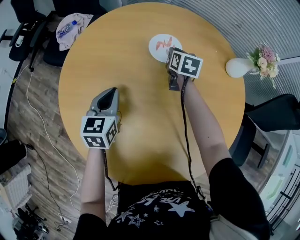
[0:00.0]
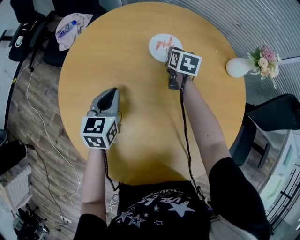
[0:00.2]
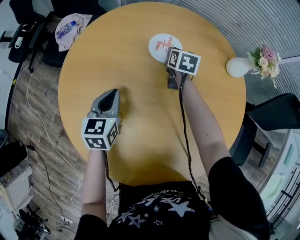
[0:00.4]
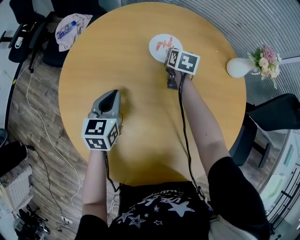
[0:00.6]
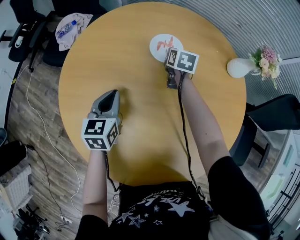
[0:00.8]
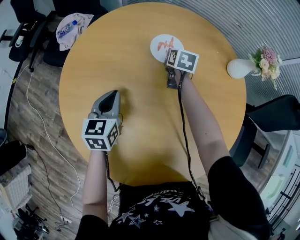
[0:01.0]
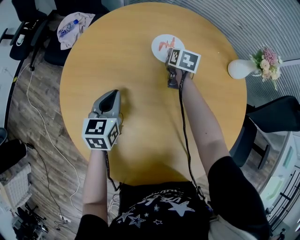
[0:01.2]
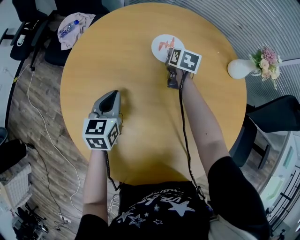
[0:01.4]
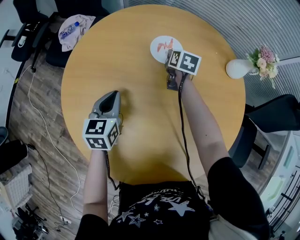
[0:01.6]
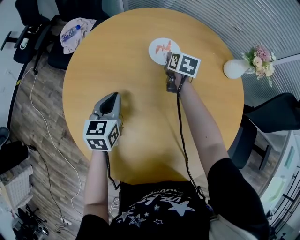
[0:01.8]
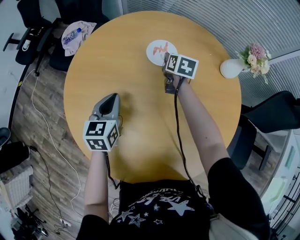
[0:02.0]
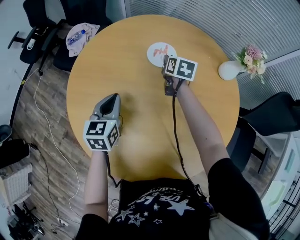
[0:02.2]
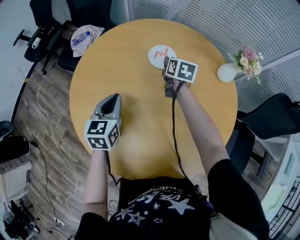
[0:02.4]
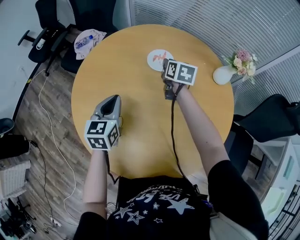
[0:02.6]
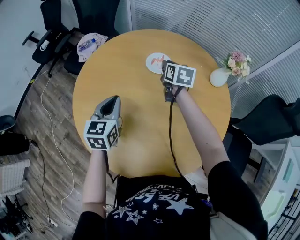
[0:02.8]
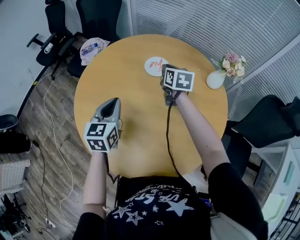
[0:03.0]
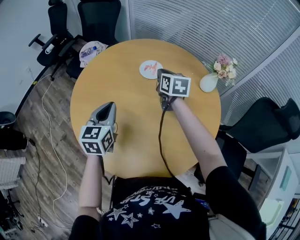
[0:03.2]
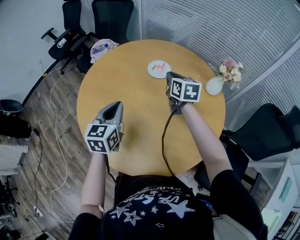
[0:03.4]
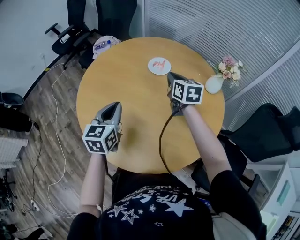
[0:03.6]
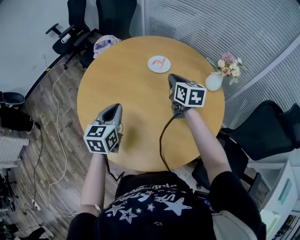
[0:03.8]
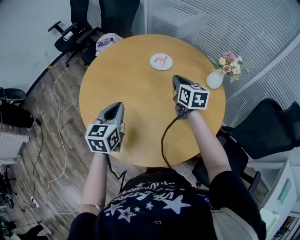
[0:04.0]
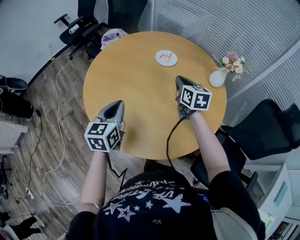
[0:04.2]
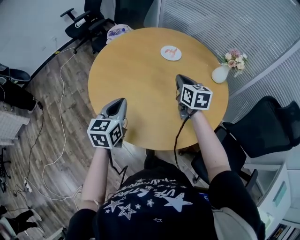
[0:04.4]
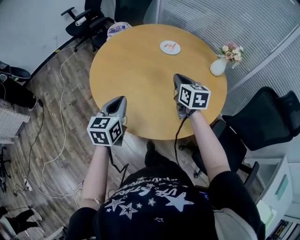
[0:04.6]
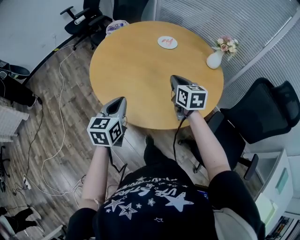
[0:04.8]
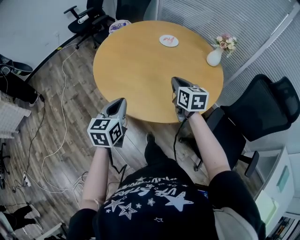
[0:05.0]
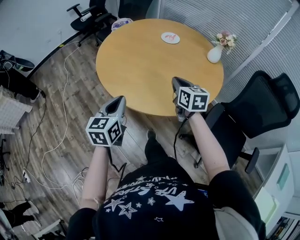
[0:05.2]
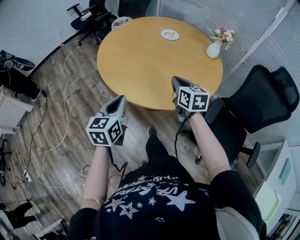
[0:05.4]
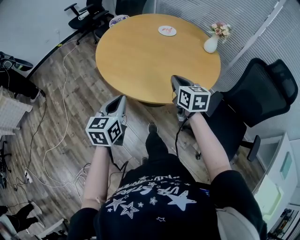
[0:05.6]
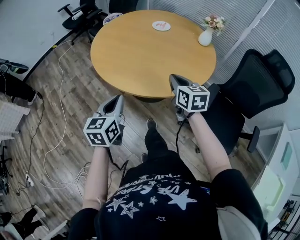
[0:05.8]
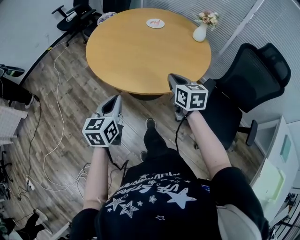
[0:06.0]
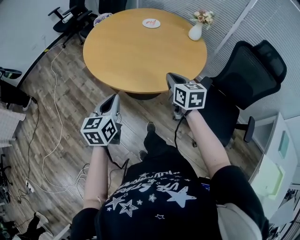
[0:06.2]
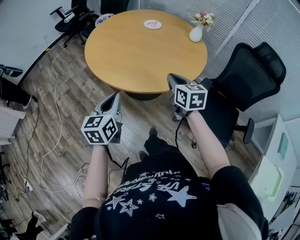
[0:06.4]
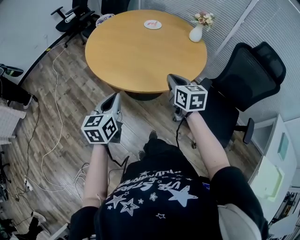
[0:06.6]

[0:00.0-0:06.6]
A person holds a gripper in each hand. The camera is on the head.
0:00.0 to 0:01.6: The grippers make only small movements.
0:01.6 to 0:03.2: The right gripper goes roughly 25 cm upward and backward, and rotates roughly 30 degrees. The left gripper is displaced upward, backward and to the right by some 20 cm.
0:03.2 to 0:05.0: Both grippers move backward, some 35 cm.
0:05.0 to 0:06.6: Both grippers travel together backward, roughly 15 cm.

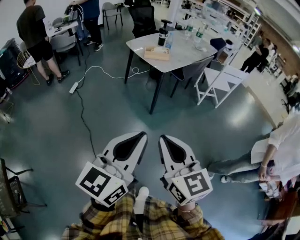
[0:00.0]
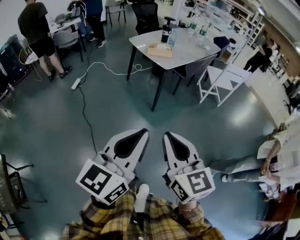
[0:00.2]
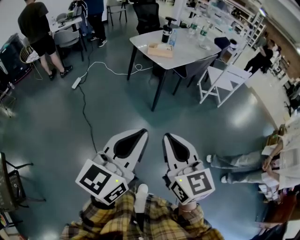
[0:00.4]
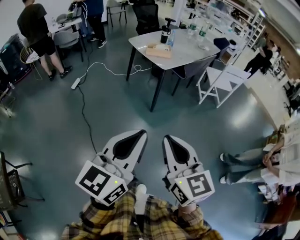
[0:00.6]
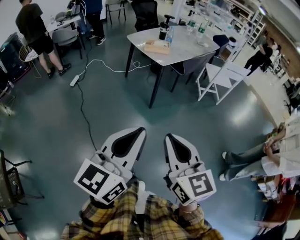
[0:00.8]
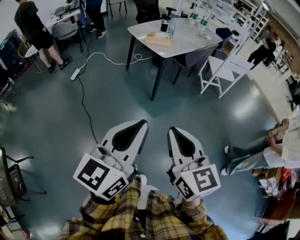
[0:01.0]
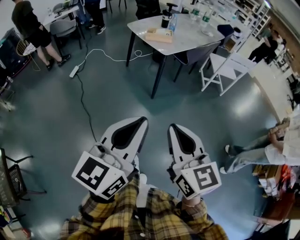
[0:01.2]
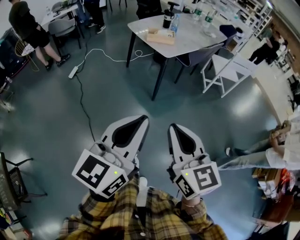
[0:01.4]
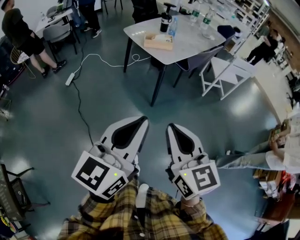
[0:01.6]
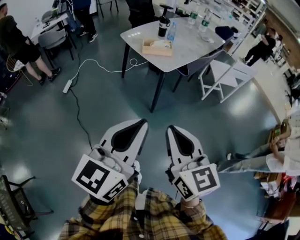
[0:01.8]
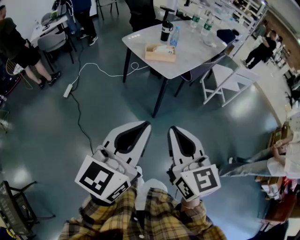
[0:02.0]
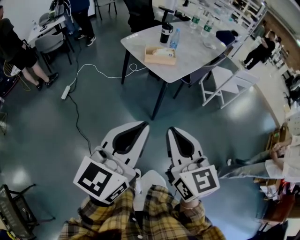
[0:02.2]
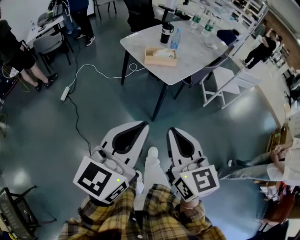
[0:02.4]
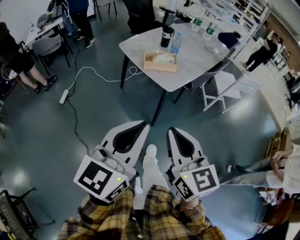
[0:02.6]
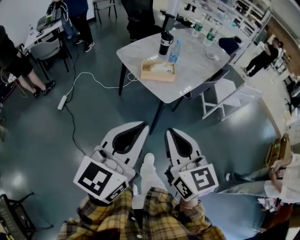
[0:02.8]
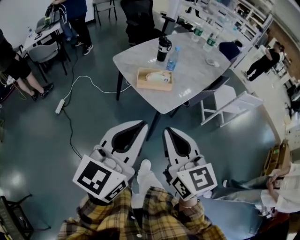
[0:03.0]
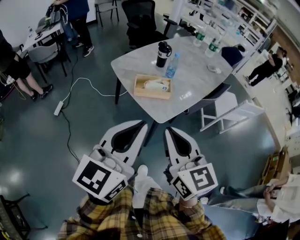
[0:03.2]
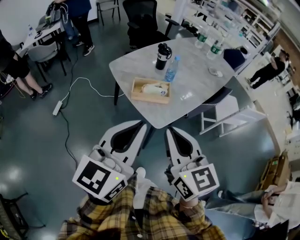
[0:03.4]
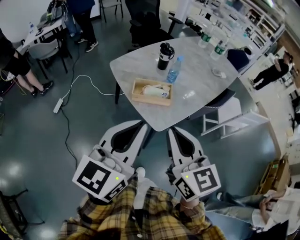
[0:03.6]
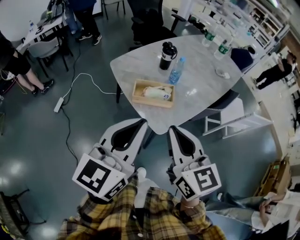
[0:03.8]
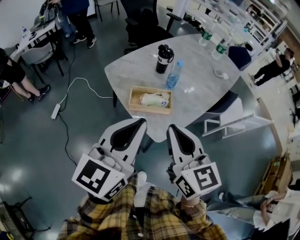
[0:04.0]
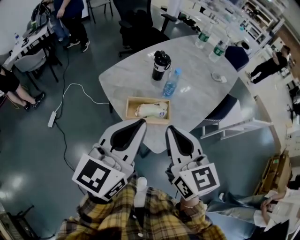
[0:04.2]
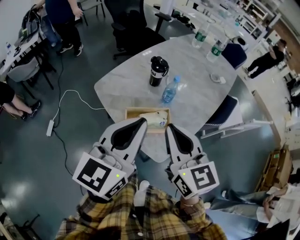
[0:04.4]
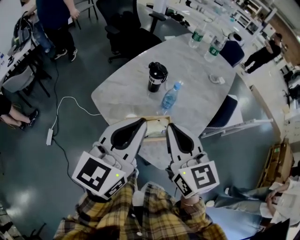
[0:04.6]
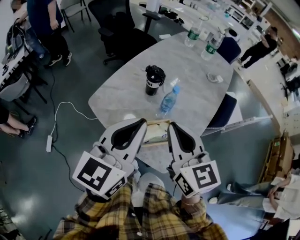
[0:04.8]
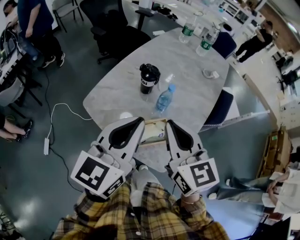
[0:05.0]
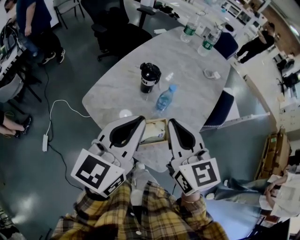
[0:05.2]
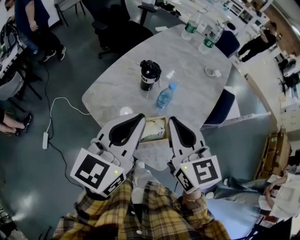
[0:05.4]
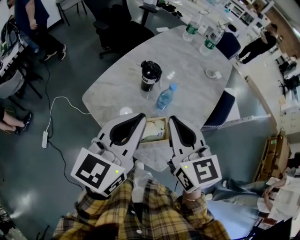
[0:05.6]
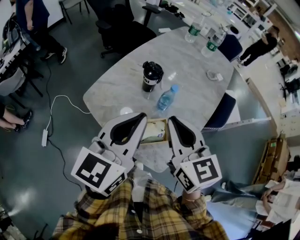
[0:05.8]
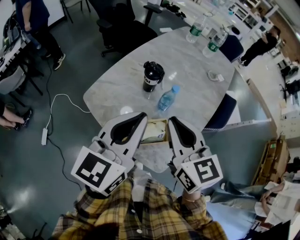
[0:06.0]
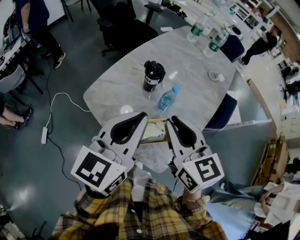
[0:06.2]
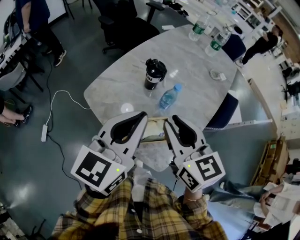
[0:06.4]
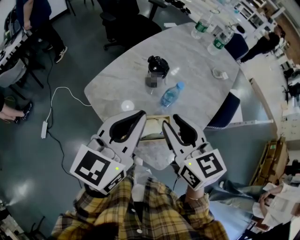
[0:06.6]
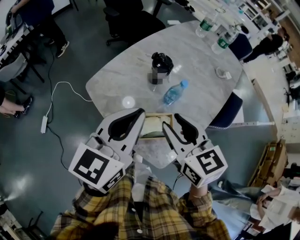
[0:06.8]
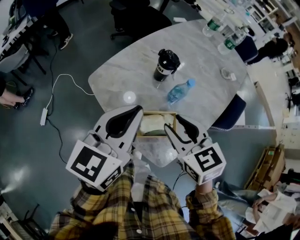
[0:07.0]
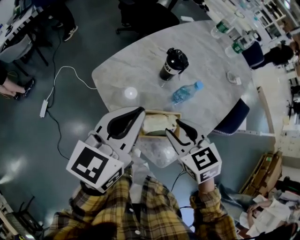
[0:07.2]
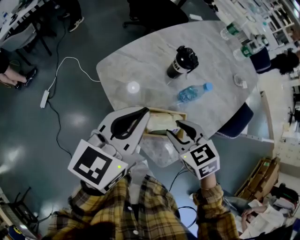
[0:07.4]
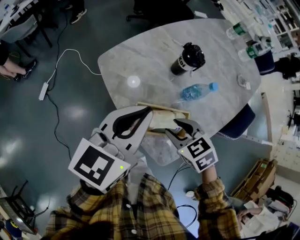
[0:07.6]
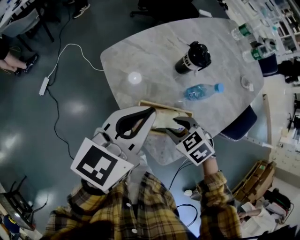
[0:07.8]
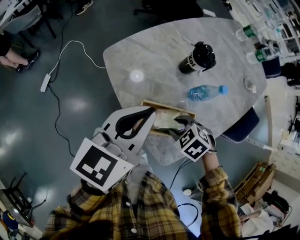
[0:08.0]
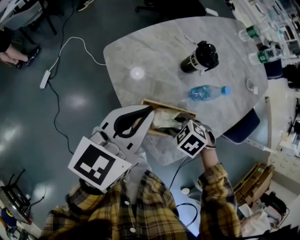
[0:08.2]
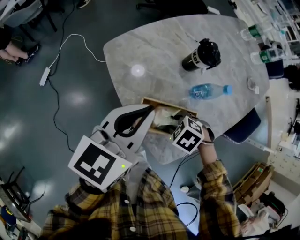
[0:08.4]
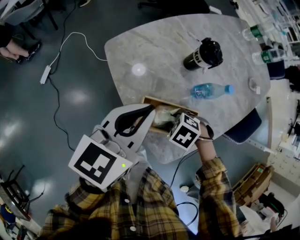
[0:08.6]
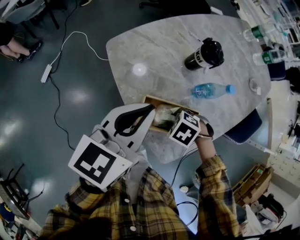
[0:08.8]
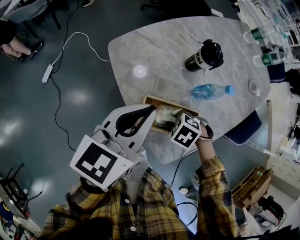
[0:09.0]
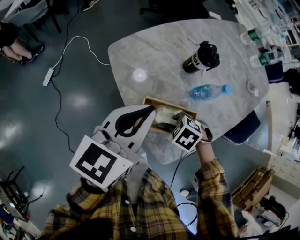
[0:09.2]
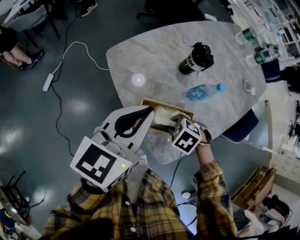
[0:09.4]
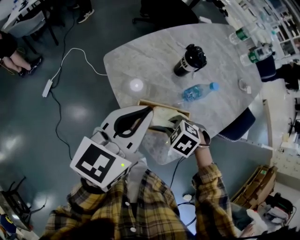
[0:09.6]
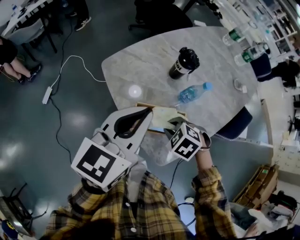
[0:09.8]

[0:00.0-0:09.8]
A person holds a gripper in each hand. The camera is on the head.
0:00.0 to 0:01.4: Both grippers travel together forward, approximately 5 cm.
0:01.4 to 0:02.8: The grippers both shift forward by approximately 35 cm.
0:02.8 to 0:04.2: The grippers both shift forward by about 35 cm.
0:04.2 to 0:05.6: Both grippers move forward, some 15 cm.
0:05.6 to 0:07.0: The right gripper moves downward, about 10 cm, changes its angle by about 30 degrees, and opens its fingers. Meanwhile the left gripper shifts by roughly 5 cm.
0:07.0 to 0:08.4: The left gripper travels downward by roughly 10 cm, while the right gripper moves downward, some 25 cm, and tilts its fingers some 50 degrees downward.
0:08.4 to 0:09.8: The two grippers go some 5 cm upward. The right gripper closes.

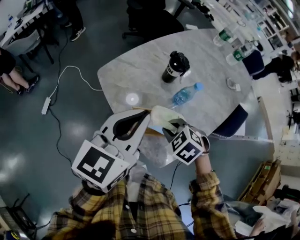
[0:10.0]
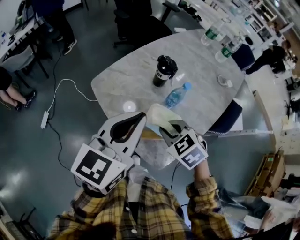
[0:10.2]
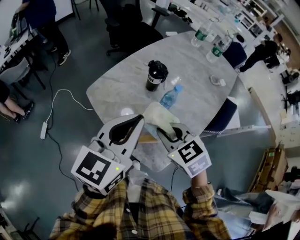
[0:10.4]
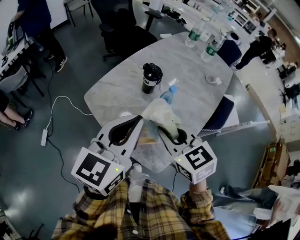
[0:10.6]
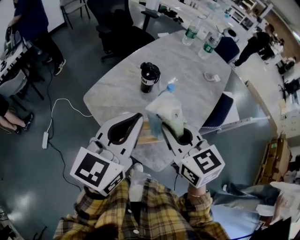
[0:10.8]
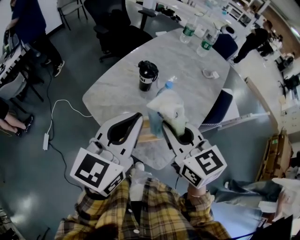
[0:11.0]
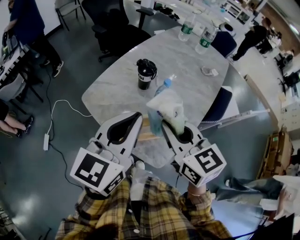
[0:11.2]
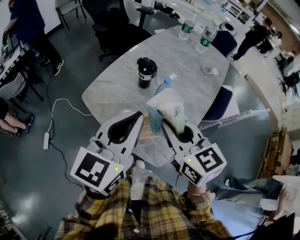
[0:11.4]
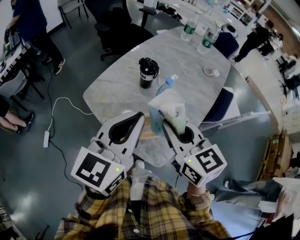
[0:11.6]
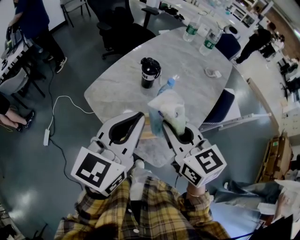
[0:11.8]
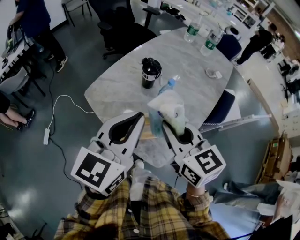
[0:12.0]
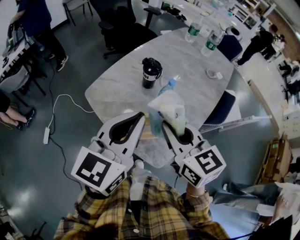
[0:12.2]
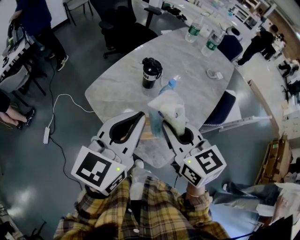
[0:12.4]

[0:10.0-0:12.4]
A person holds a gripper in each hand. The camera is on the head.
0:10.0 to 0:11.2: The left gripper moves upward and to the right, some 5 cm. Meanwhile the right gripper heads upward, covering some 20 cm, and points its fingers some 50 degrees further upward.
0:11.2 to 0:12.4: Both grippers stay put.

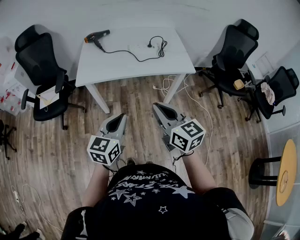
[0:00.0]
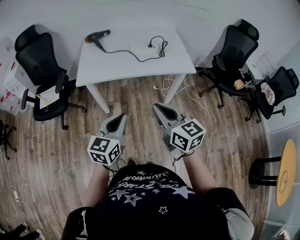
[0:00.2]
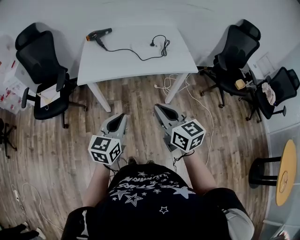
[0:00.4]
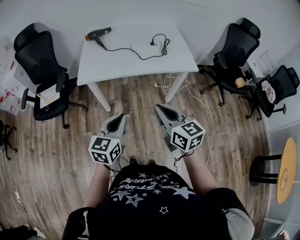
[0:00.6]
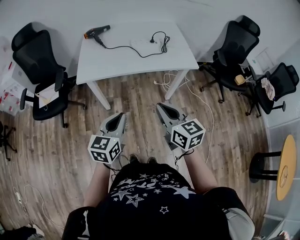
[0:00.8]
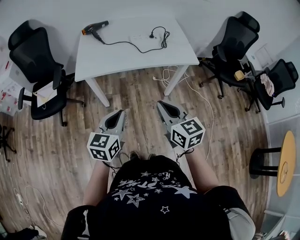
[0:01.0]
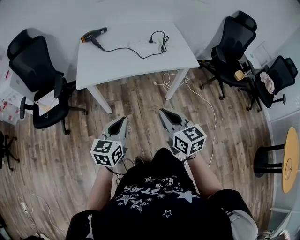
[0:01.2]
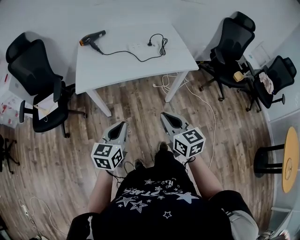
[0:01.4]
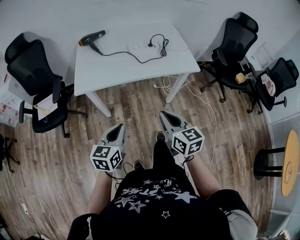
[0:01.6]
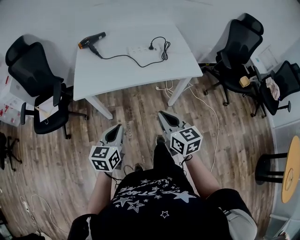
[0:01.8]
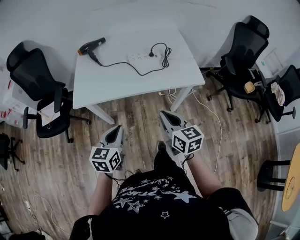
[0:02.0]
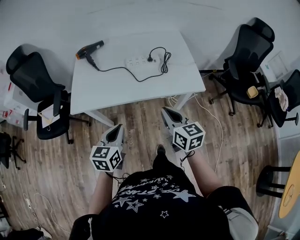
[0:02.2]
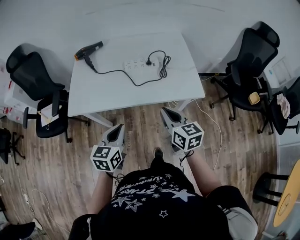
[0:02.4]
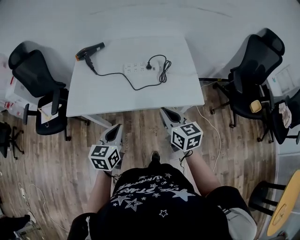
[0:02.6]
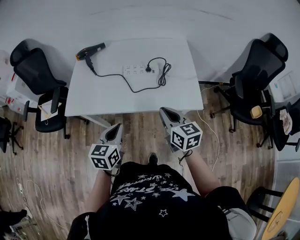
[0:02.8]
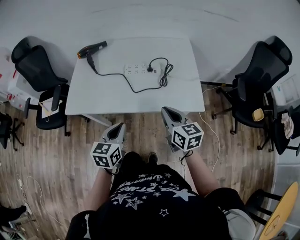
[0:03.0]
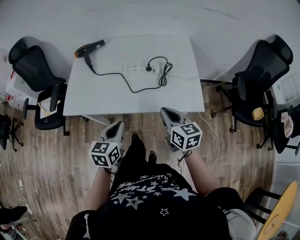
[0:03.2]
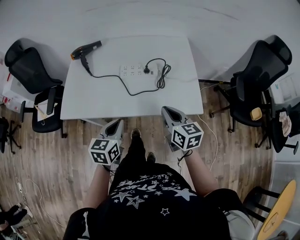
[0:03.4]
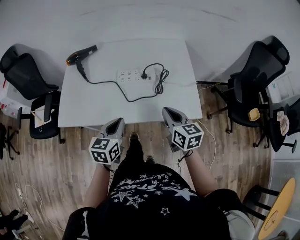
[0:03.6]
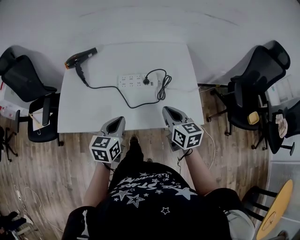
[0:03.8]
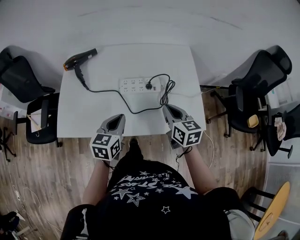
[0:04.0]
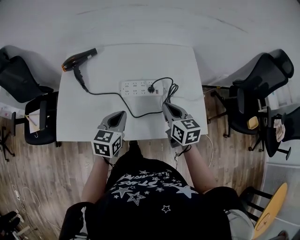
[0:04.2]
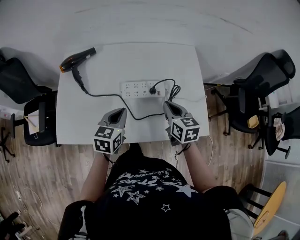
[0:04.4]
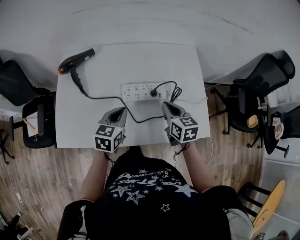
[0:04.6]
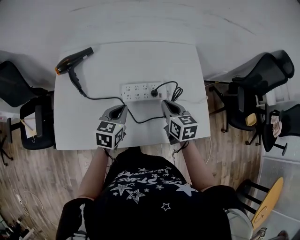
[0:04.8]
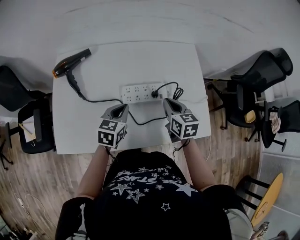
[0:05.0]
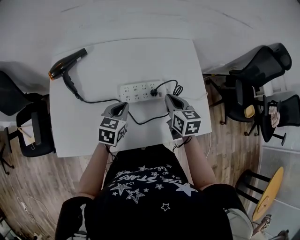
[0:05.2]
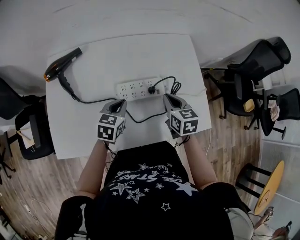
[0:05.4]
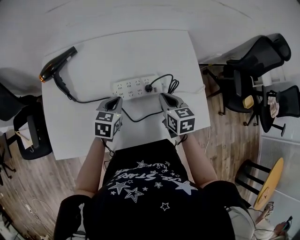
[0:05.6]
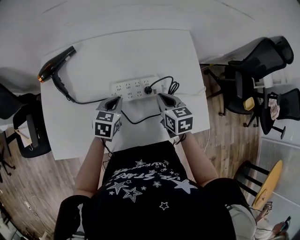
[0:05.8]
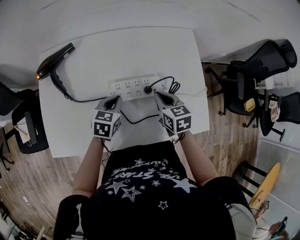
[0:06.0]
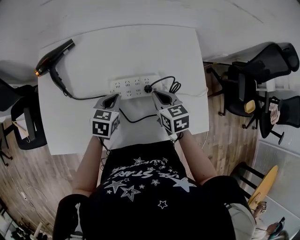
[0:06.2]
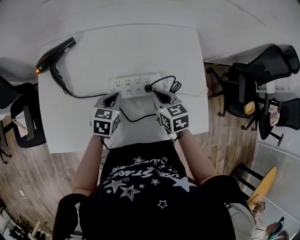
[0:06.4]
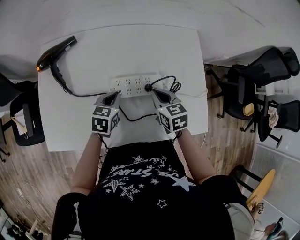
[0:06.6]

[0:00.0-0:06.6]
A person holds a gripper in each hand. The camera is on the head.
0:00.0 to 0:01.6: The right gripper heads downward and forward, covering roughly 10 cm; the left gripper travels downward and to the left by roughly 10 cm.
0:01.6 to 0:03.2: The grippers both shift forward and to the right by some 30 cm.
0:03.2 to 0:05.0: Both grippers move forward, about 25 cm.
0:05.0 to 0:06.6: The right gripper moves approximately 5 cm, while the left gripper shifts some 5 cm downward.
